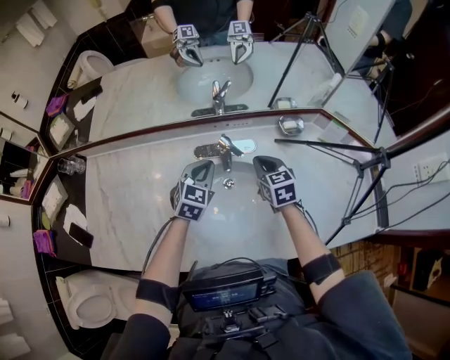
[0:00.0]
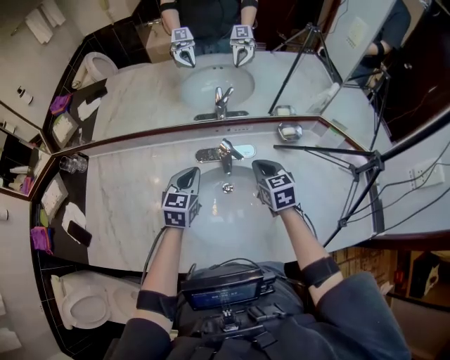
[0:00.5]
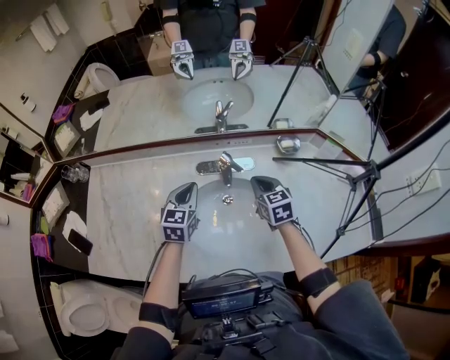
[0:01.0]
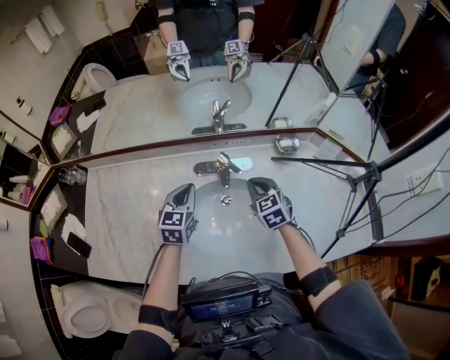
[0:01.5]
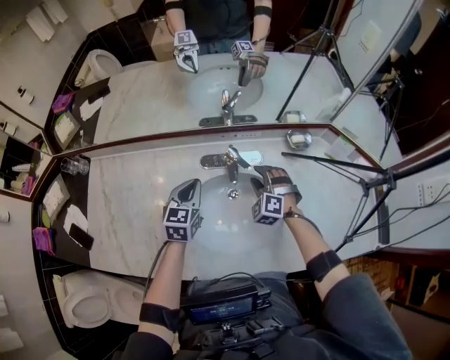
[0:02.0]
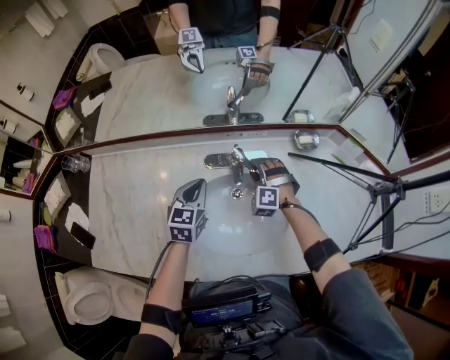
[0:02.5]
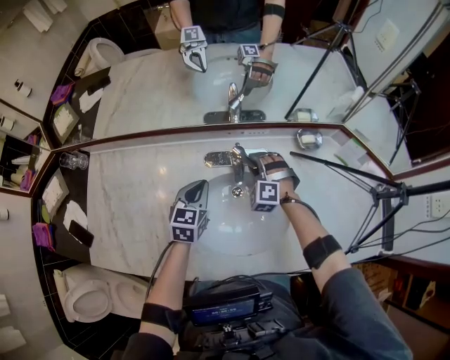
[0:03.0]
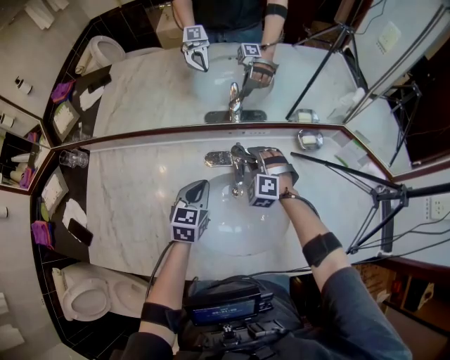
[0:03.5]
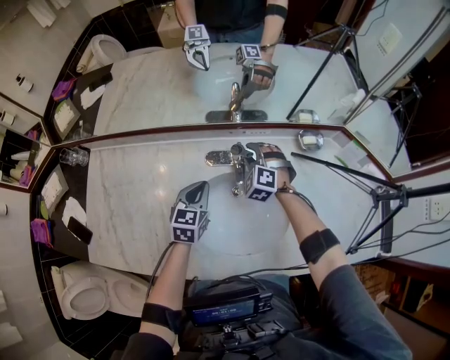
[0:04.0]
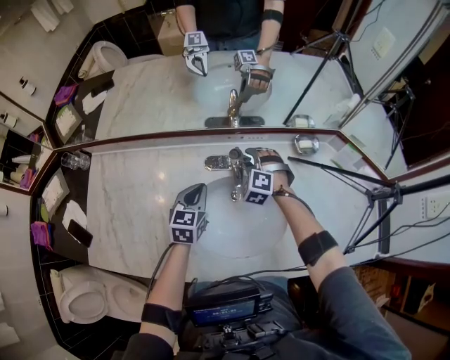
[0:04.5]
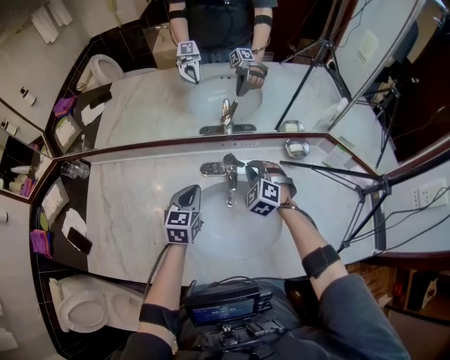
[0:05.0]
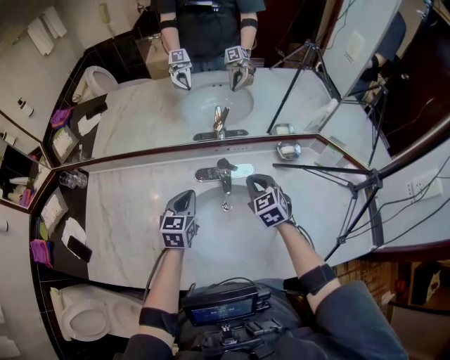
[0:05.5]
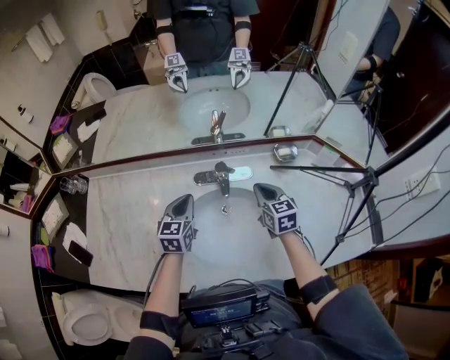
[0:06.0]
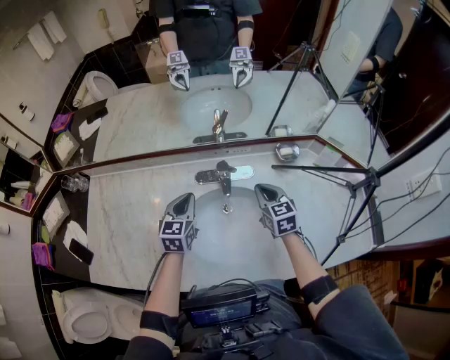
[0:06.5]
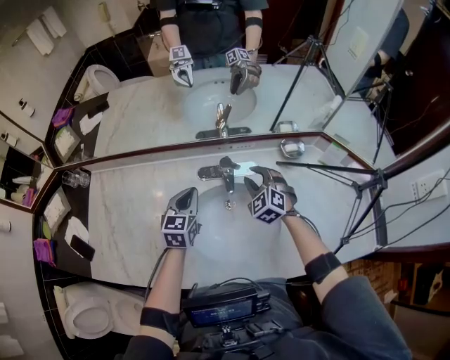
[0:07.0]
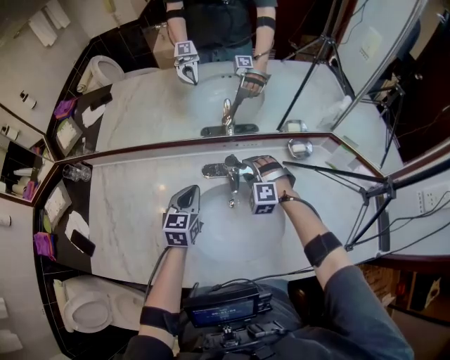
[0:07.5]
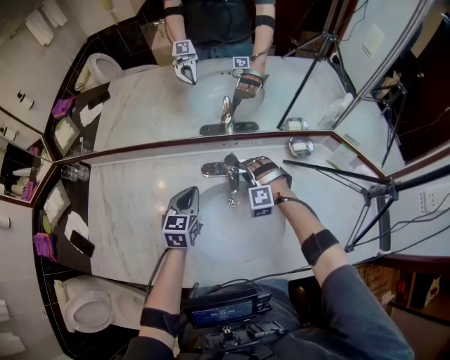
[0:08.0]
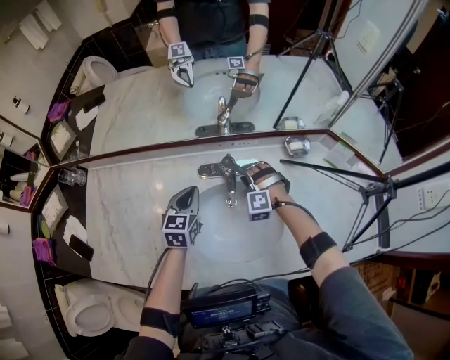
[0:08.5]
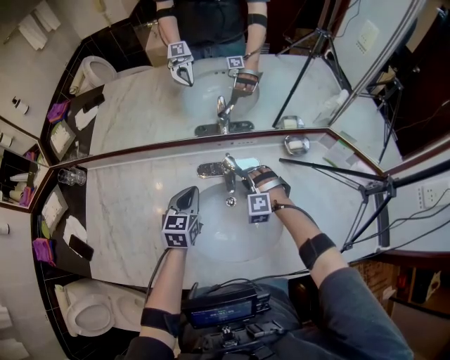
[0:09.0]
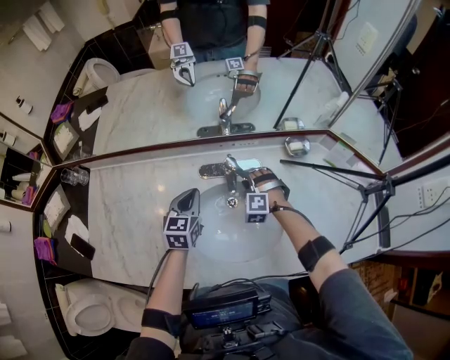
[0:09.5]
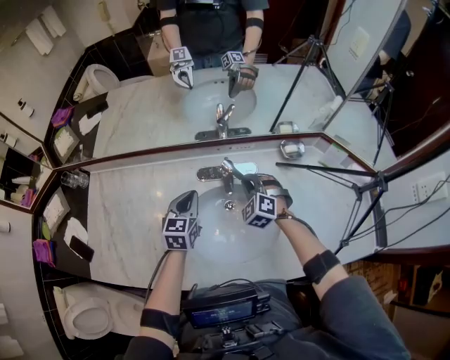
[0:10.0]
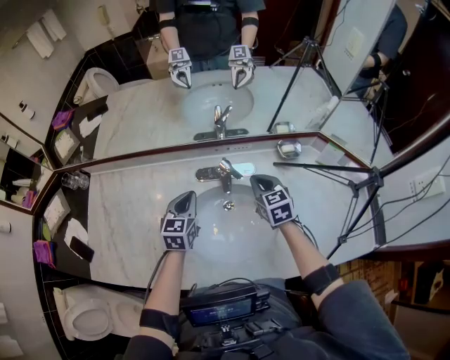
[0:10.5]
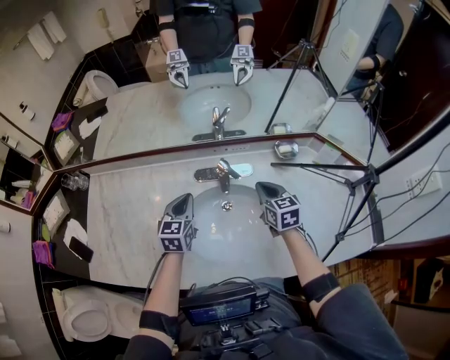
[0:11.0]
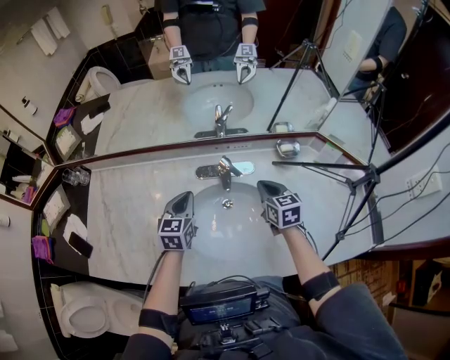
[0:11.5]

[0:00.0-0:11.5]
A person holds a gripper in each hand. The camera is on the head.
0:00.0 to 0:02.0: The left gripper is displaced to the left by approximately 5 cm, and rotates approximately 20 degrees; the right gripper heads downward, covering roughly 5 cm, rolls counterclockwise, seen from behind, by approximately 60 degrees, and opens.
0:02.0 to 0:04.0: The right gripper travels forward and to the left by roughly 10 cm.
0:04.0 to 0:06.0: The right gripper moves backward, to the right and upward, some 15 cm, twists roughly 70 degrees clockwise, seen from behind, and closes up. Meanwhile the left gripper goes roughly 5 cm upward.
0:06.0 to 0:07.5: The right gripper is displaced to the left, forward and downward by roughly 15 cm, rotates around the line of its fingers by some 80 degrees, counterclockwise from behind, and opens its fingers.
0:07.5 to 0:09.5: The right gripper shifts by roughly 5 cm.
0:09.5 to 0:11.5: The right gripper heads upward, to the right and backward, covering approximately 15 cm, twists about 80 degrees clockwise, seen from behind, and closes.

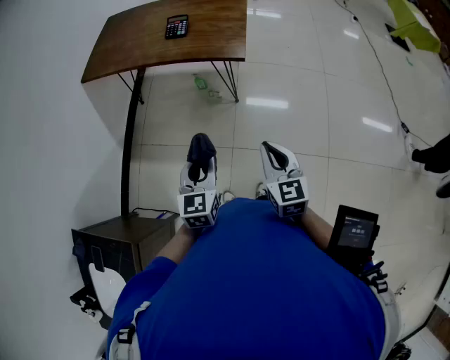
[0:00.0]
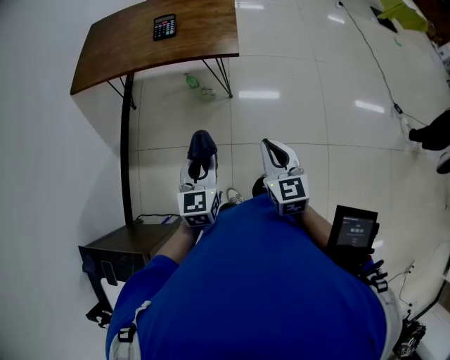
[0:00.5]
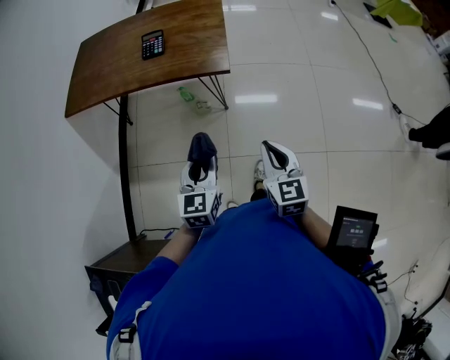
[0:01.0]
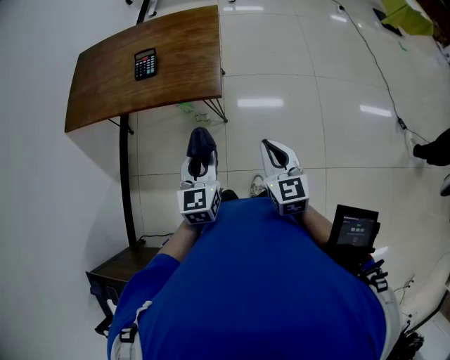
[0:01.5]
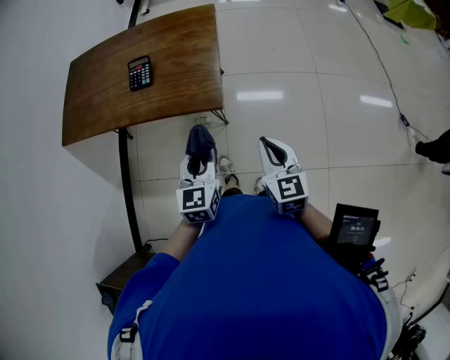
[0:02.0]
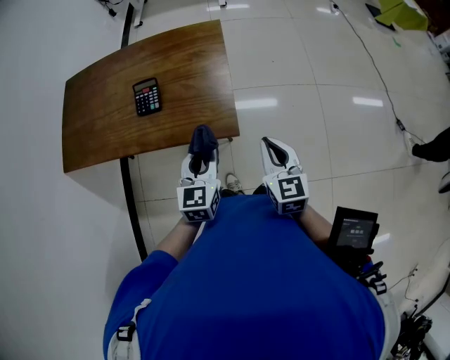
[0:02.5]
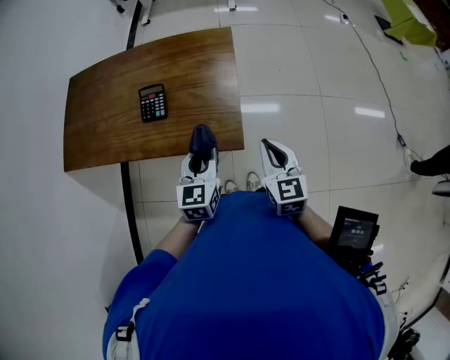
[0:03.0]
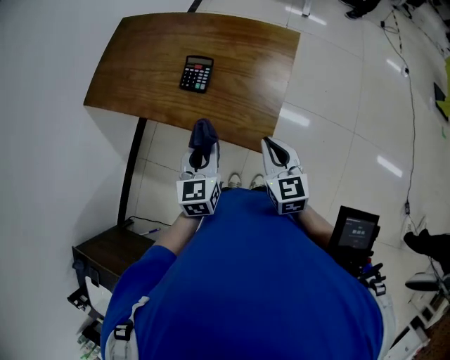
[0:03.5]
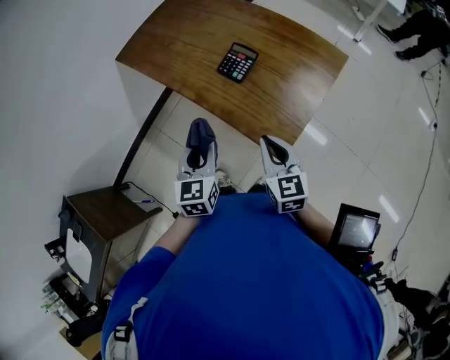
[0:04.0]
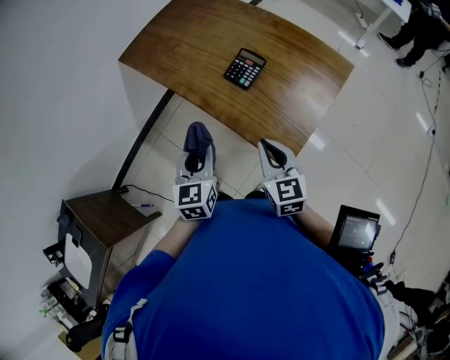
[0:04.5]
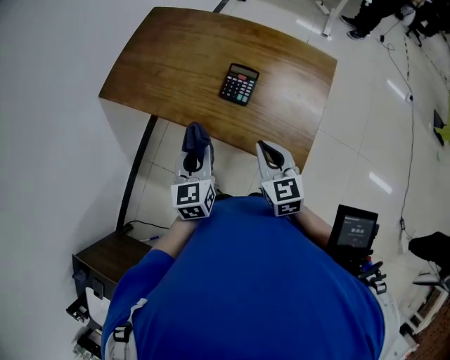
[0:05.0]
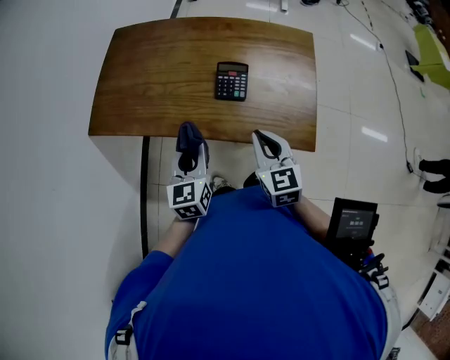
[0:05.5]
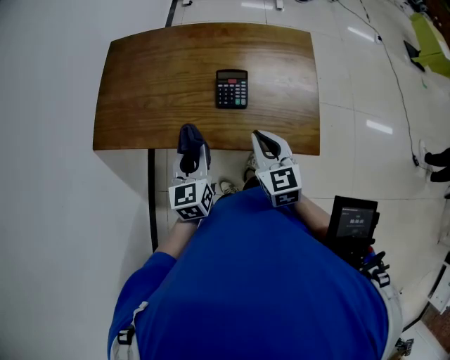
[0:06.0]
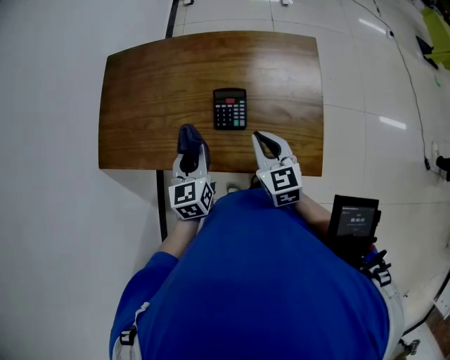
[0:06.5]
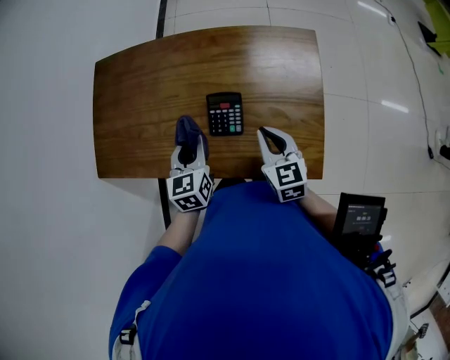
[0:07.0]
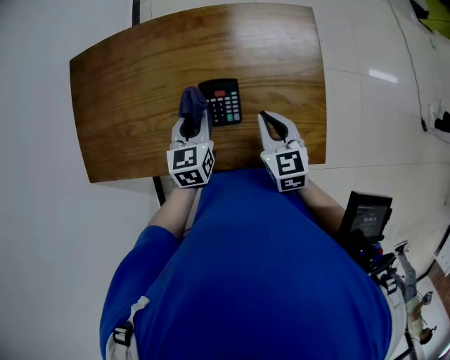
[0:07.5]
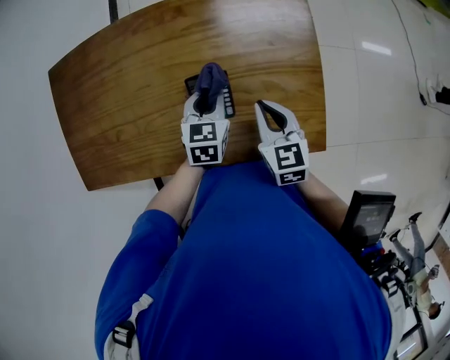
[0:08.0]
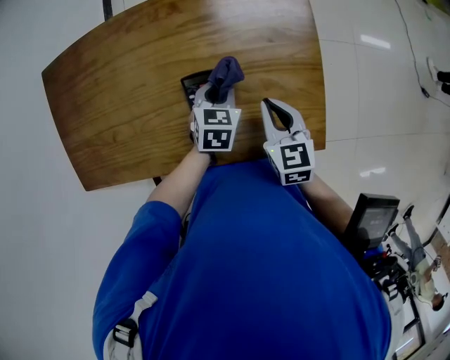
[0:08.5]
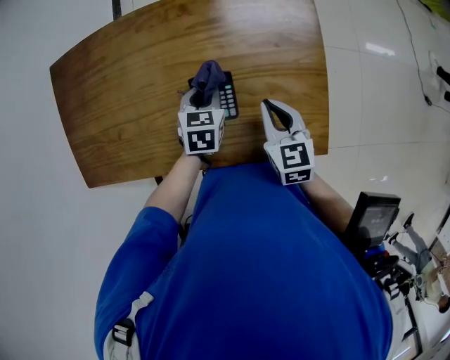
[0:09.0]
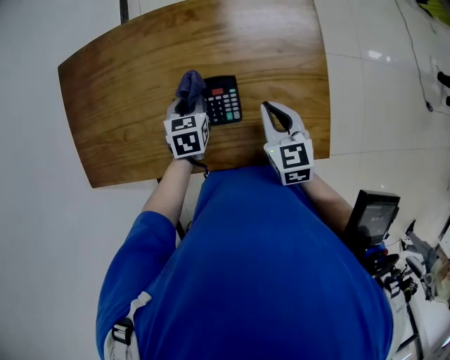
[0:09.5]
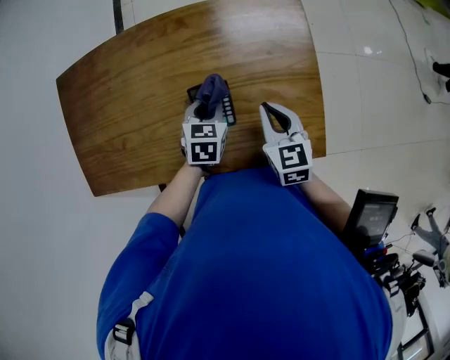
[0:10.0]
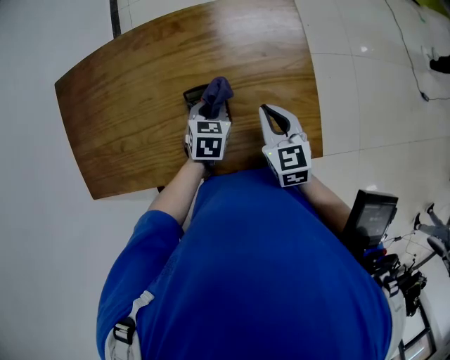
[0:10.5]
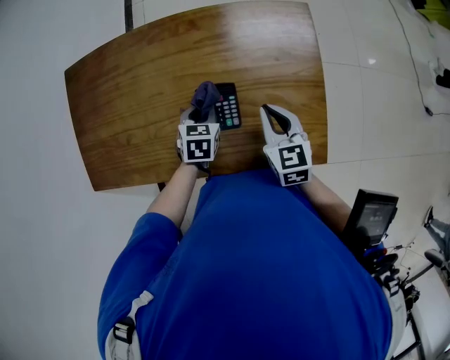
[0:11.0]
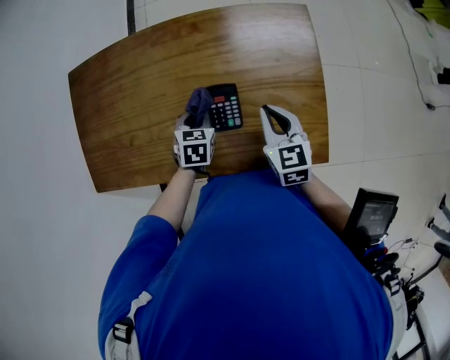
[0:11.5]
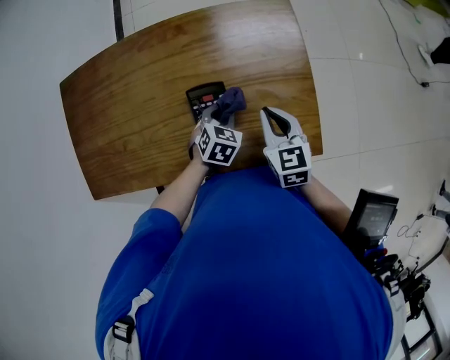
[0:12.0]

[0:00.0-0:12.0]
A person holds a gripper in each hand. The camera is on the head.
0:00.0 to 0:02.0: The two grippers go about 25 cm forward.
0:02.0 to 0:04.0: The right gripper changes place by approximately 25 cm, and changes its angle by some 40 degrees. Meanwhile the left gripper shifts by some 20 cm, and turns by roughly 40 degrees.
0:04.0 to 0:06.0: The left gripper changes place by some 25 cm, and swivels some 30 degrees. The right gripper ends up roughly 20 cm from where it was, and swivels some 30 degrees.
0:06.0 to 0:08.0: The right gripper moves forward and to the right, roughly 10 cm, while the left gripper goes roughly 20 cm forward and to the right, and swivels approximately 30 degrees.
0:08.0 to 0:10.0: The left gripper goes to the left and returns, about 10 cm each way.
0:10.0 to 0:12.0: The left gripper shifts by approximately 5 cm.

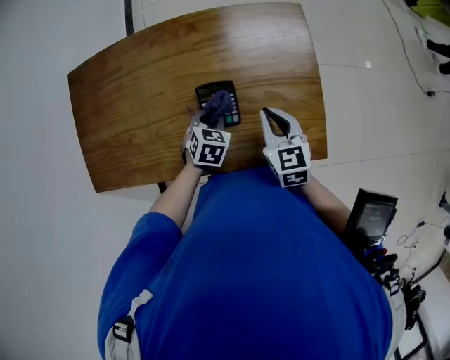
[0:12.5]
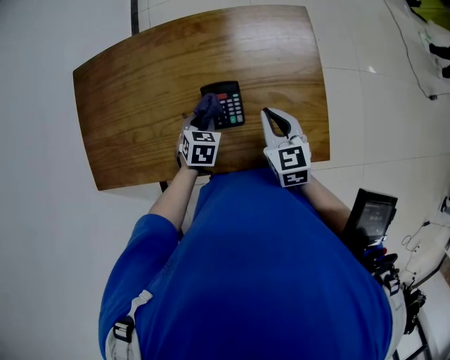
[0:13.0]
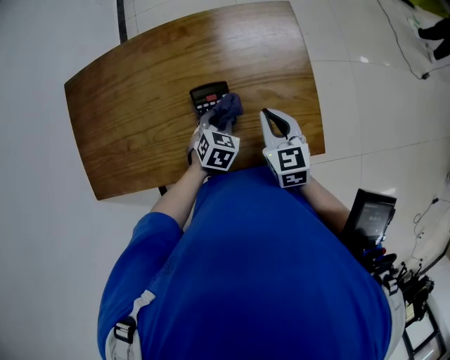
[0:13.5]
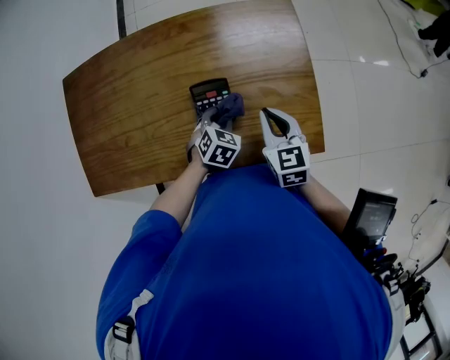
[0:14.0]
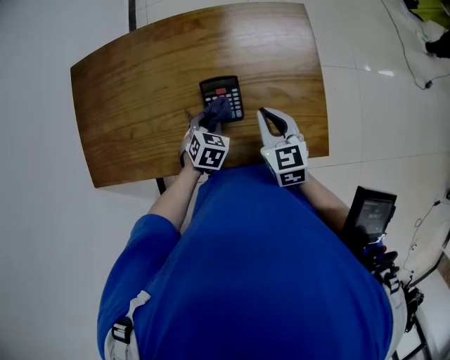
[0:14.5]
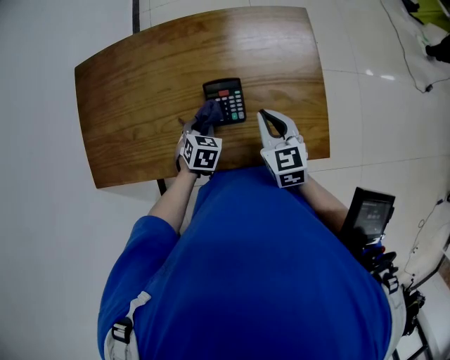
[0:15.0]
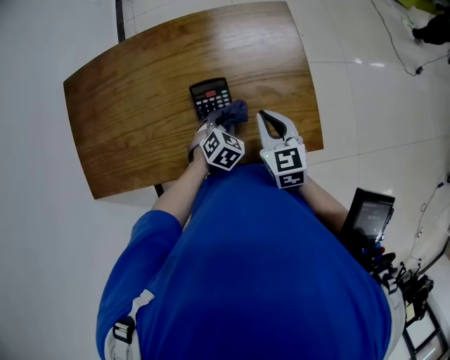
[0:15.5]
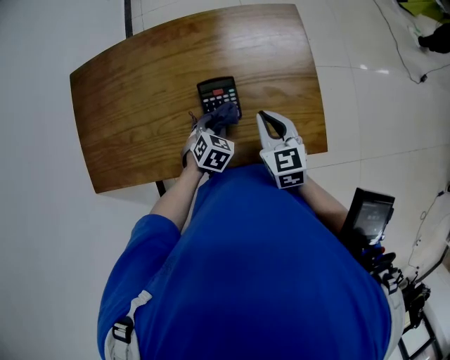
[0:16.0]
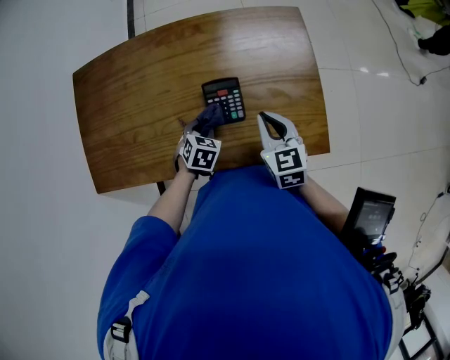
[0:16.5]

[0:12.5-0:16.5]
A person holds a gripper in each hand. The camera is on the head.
0:12.5 to 0:14.5: The left gripper goes left and right, approximately 10 cm each way, reversing 2 times.
0:14.5 to 0:16.5: The left gripper goes to the right and returns, about 10 cm each way.
